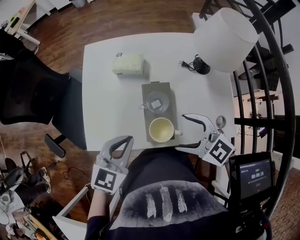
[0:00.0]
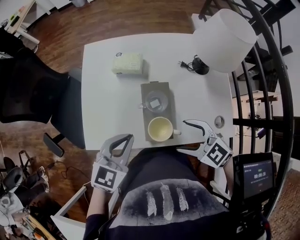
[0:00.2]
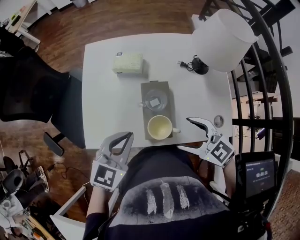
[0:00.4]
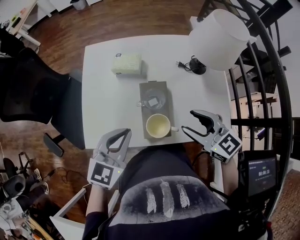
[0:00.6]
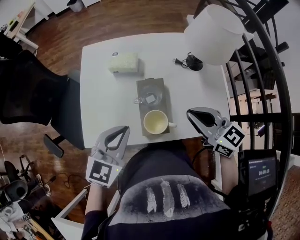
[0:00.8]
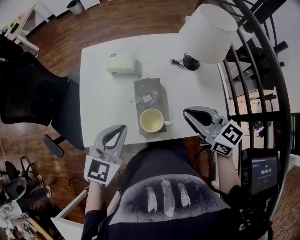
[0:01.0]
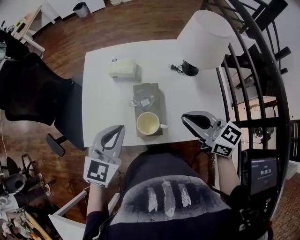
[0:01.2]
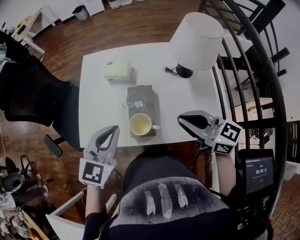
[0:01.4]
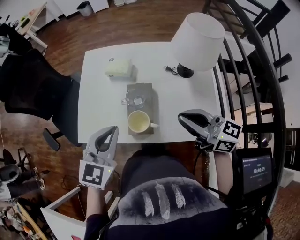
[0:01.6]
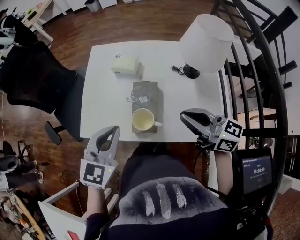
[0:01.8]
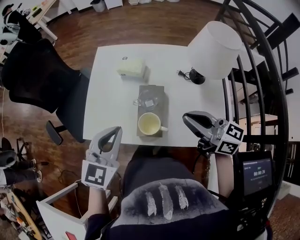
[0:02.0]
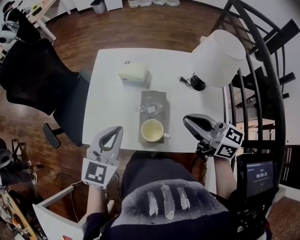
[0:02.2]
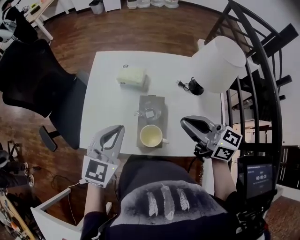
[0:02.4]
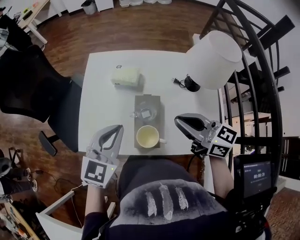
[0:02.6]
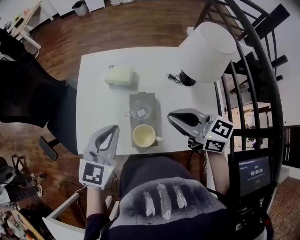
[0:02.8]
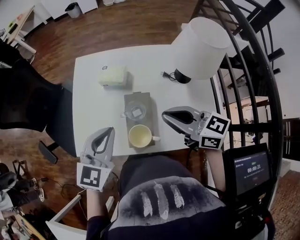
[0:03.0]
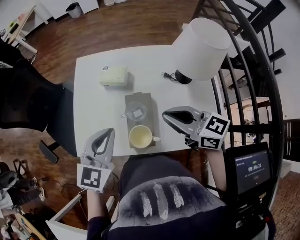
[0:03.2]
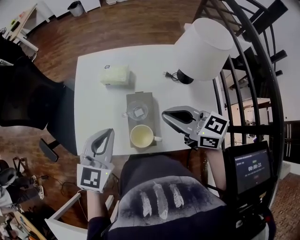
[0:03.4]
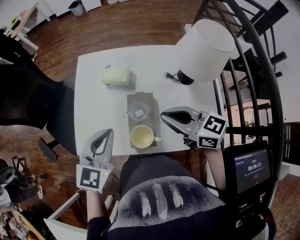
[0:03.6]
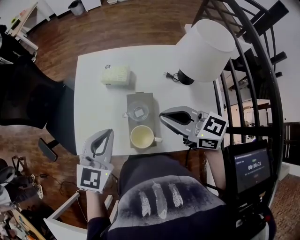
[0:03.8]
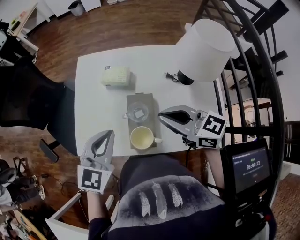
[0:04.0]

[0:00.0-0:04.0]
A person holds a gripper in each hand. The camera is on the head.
0:00.0 to 0:01.4: The left gripper goes about 10 cm upward; the right gripper goes roughly 15 cm upward and to the right, swivels approximately 30 degrees, and closes up.
0:01.4 to 0:02.6: The two grippers go some 5 cm forward.
0:02.6 to 0:04.0: The grippers move only a little.

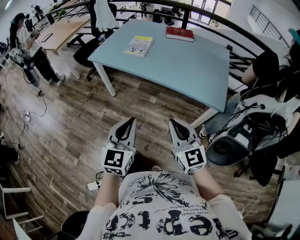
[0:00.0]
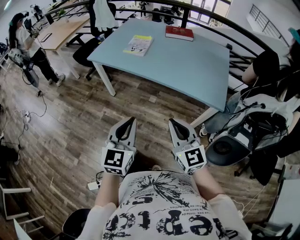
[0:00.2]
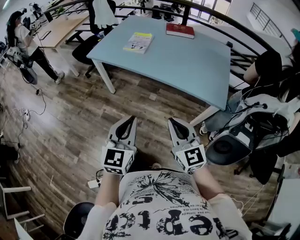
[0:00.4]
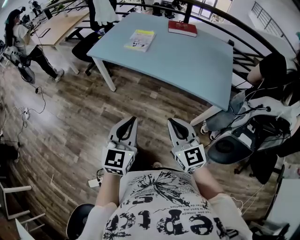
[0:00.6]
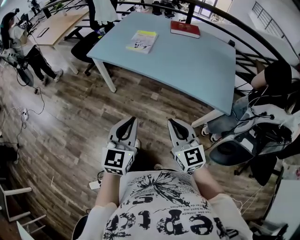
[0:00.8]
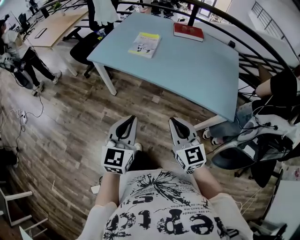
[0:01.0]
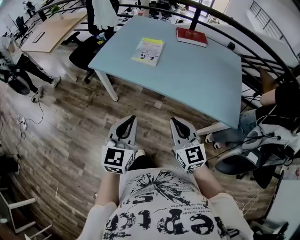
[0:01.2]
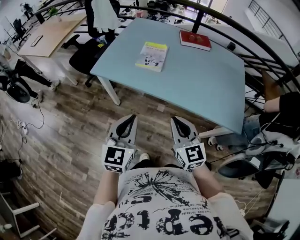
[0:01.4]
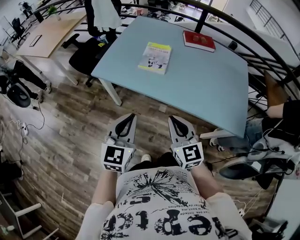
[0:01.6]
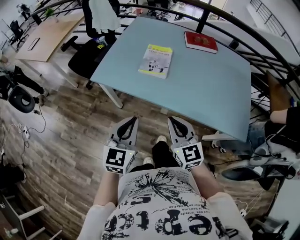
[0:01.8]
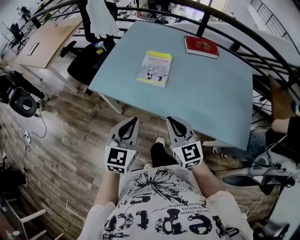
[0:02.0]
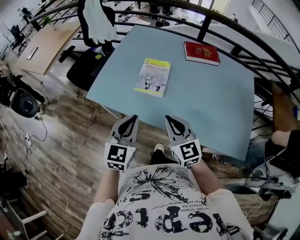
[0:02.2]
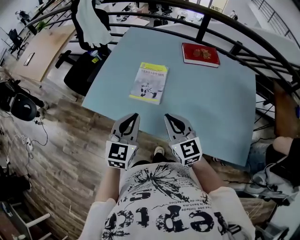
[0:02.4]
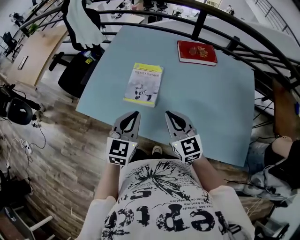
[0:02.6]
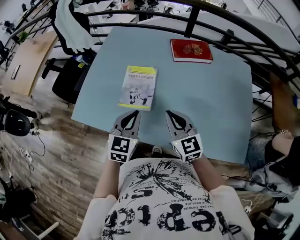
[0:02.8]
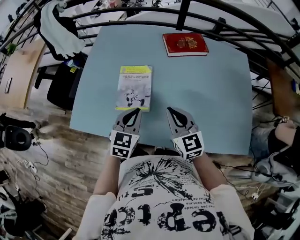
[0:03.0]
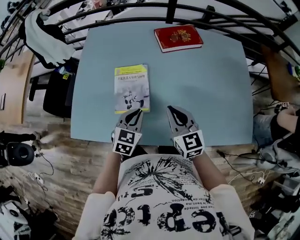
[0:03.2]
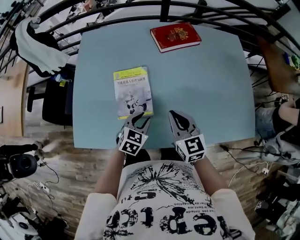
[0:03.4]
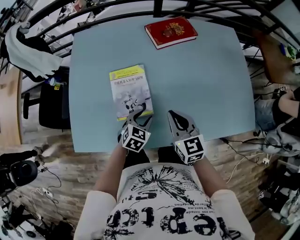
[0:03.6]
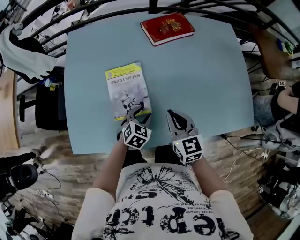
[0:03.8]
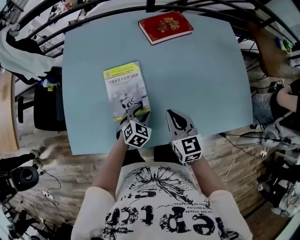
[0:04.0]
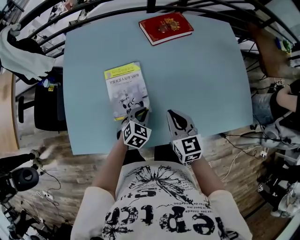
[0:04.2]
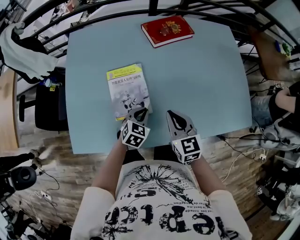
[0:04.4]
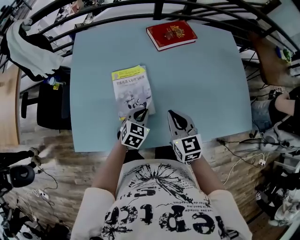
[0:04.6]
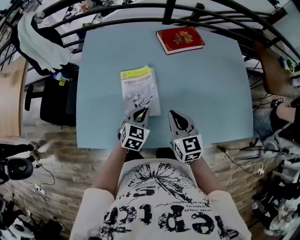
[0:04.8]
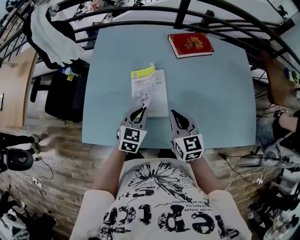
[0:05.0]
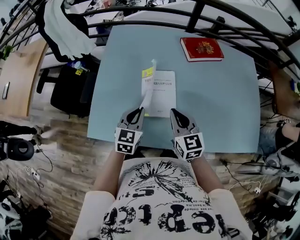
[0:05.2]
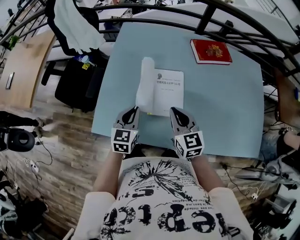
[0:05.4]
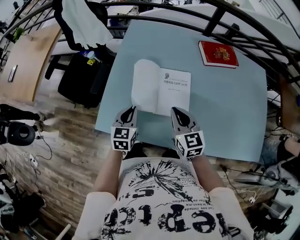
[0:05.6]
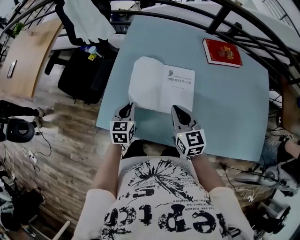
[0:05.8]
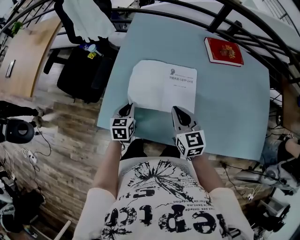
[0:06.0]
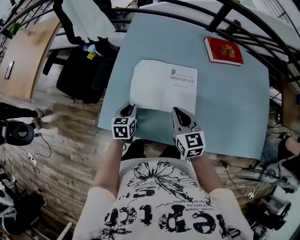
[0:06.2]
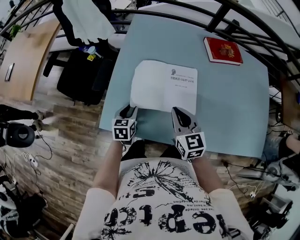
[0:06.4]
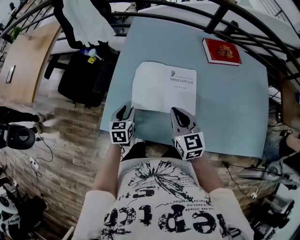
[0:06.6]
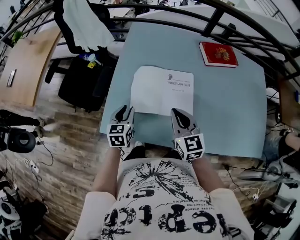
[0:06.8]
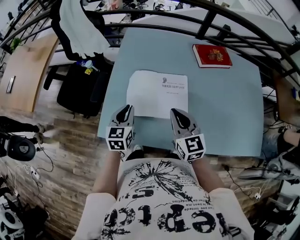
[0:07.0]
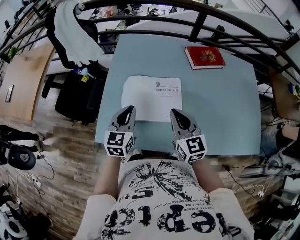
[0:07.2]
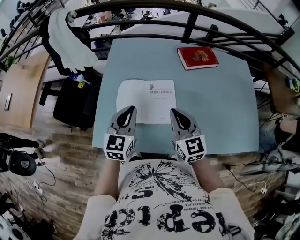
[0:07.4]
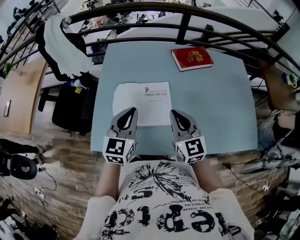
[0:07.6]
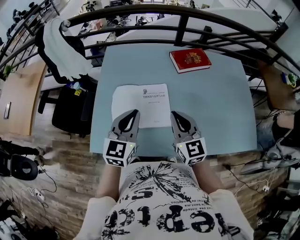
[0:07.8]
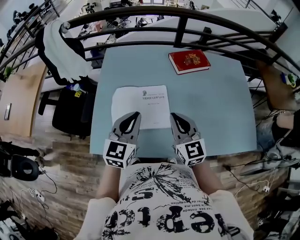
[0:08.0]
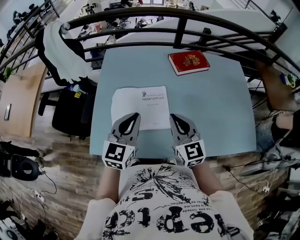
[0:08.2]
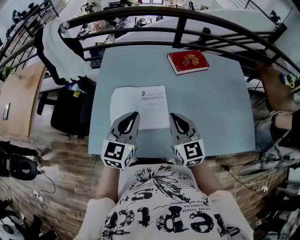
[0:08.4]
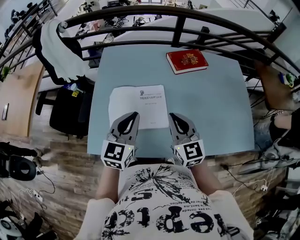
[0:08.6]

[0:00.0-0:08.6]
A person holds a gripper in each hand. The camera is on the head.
0:00.0 to 0:01.4: The grippers both shift forward and to the left by some 30 cm.
0:01.4 to 0:02.8: The two grippers go about 35 cm forward.
0:02.8 to 0:04.4: The left gripper shifts roughly 15 cm downward, turns by some 40 degrees, and opens and closes again. The right gripper travels downward by approximately 5 cm, and swivels some 30 degrees.
0:04.4 to 0:05.8: The right gripper moves about 20 cm. Meanwhile the left gripper reaches some 10 cm upward, then returns, and turns by about 50 degrees.
0:05.8 to 0:07.2: The left gripper moves upward, some 15 cm, and opens, then closes once more. The right gripper goes approximately 5 cm upward.
0:07.2 to 0:08.6: The left gripper moves to the right and upward, roughly 15 cm. Meanwhile the right gripper moves to the right, approximately 5 cm.

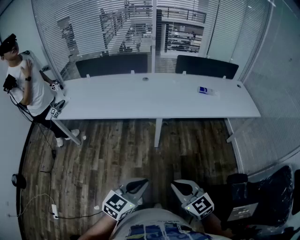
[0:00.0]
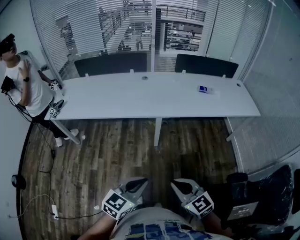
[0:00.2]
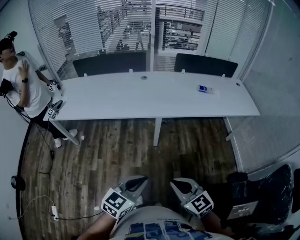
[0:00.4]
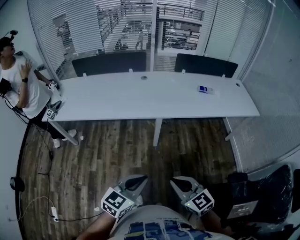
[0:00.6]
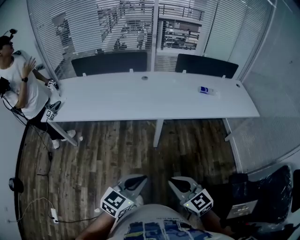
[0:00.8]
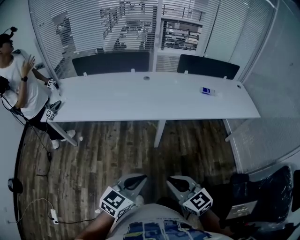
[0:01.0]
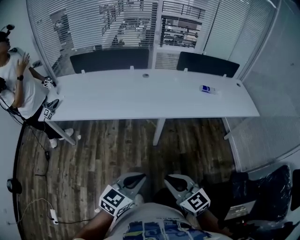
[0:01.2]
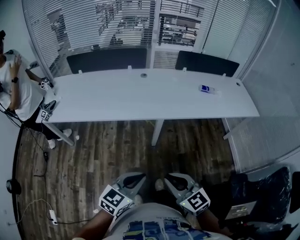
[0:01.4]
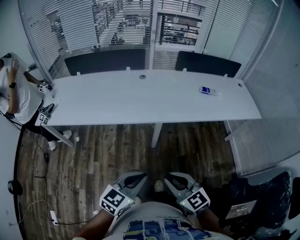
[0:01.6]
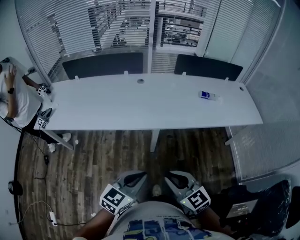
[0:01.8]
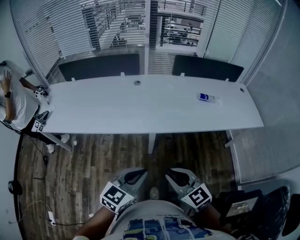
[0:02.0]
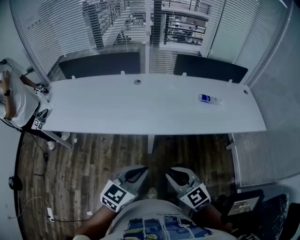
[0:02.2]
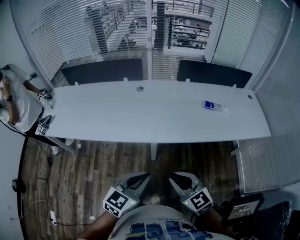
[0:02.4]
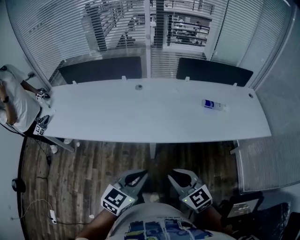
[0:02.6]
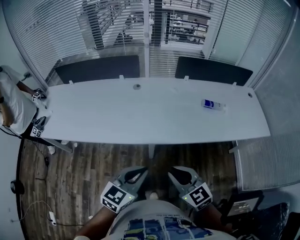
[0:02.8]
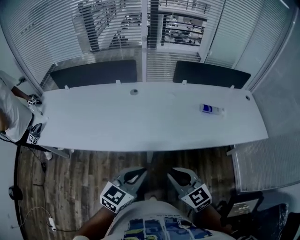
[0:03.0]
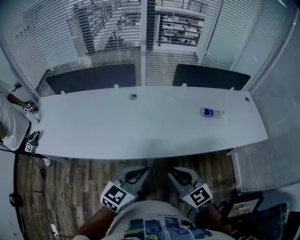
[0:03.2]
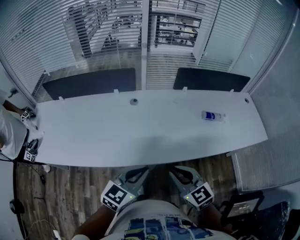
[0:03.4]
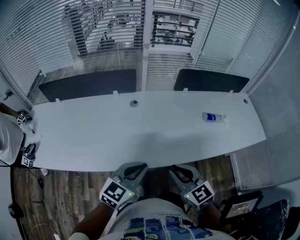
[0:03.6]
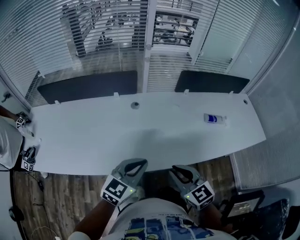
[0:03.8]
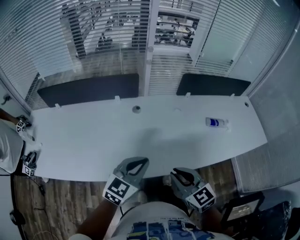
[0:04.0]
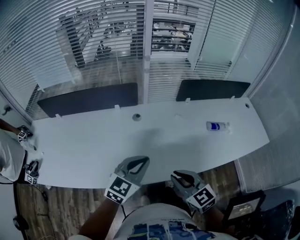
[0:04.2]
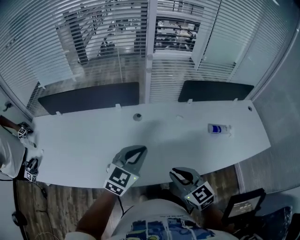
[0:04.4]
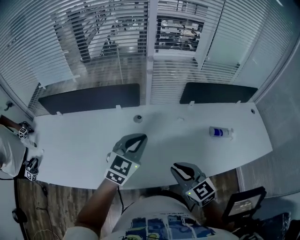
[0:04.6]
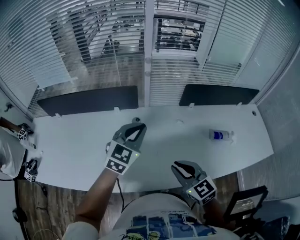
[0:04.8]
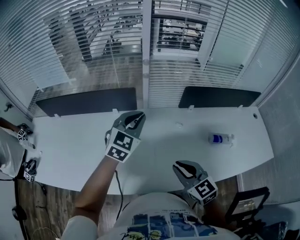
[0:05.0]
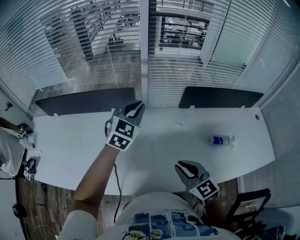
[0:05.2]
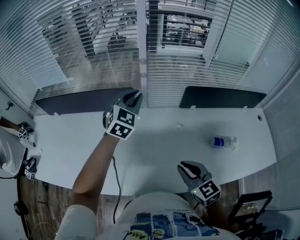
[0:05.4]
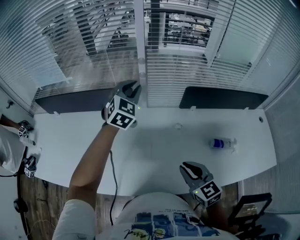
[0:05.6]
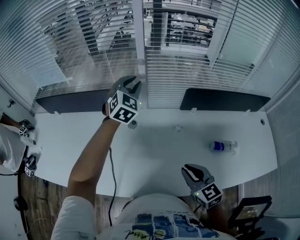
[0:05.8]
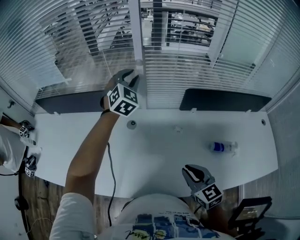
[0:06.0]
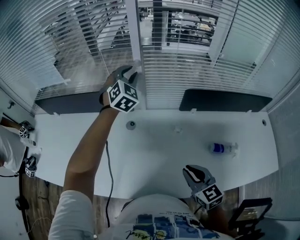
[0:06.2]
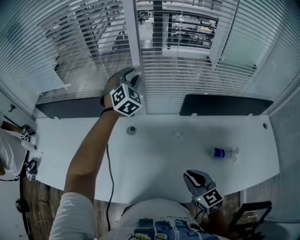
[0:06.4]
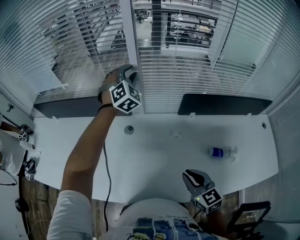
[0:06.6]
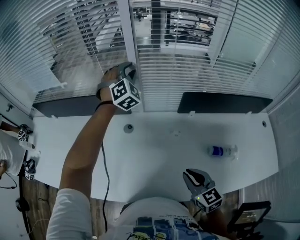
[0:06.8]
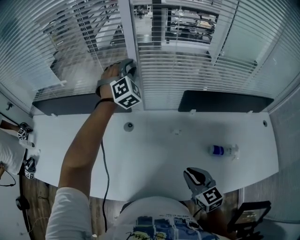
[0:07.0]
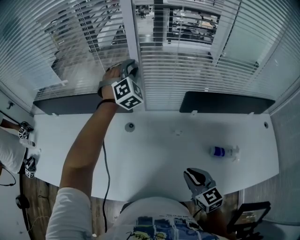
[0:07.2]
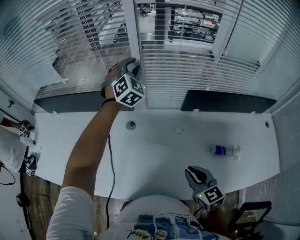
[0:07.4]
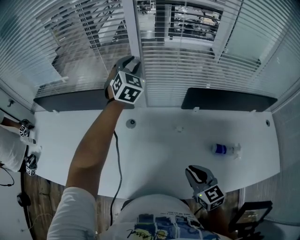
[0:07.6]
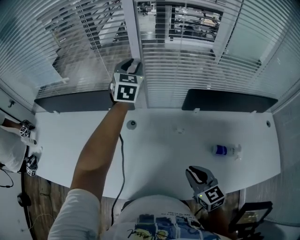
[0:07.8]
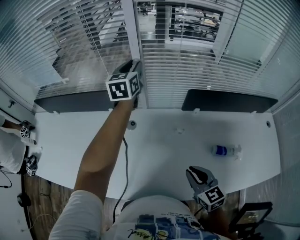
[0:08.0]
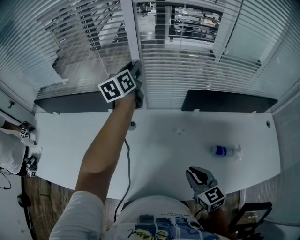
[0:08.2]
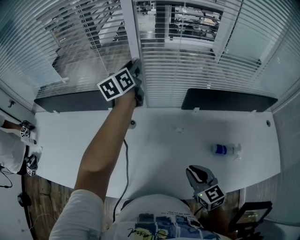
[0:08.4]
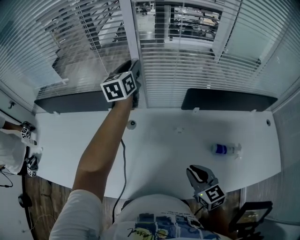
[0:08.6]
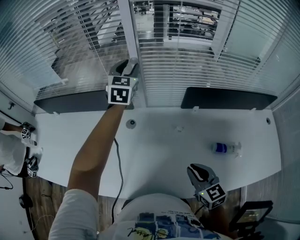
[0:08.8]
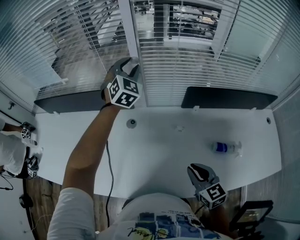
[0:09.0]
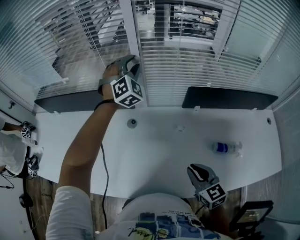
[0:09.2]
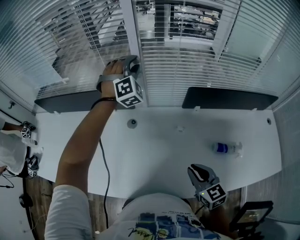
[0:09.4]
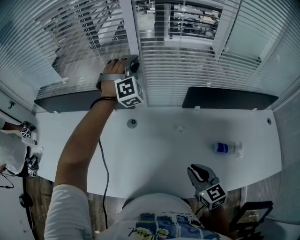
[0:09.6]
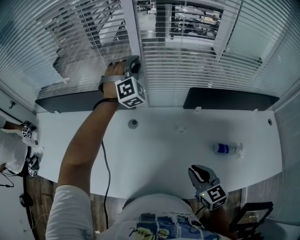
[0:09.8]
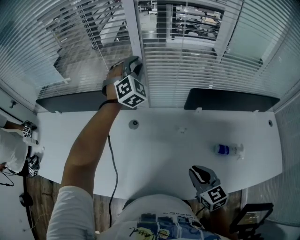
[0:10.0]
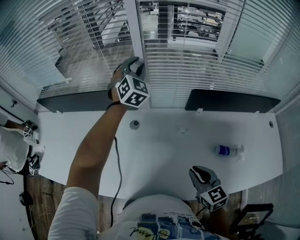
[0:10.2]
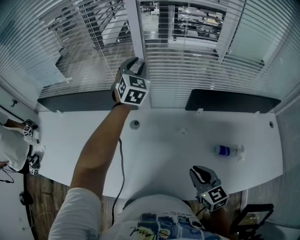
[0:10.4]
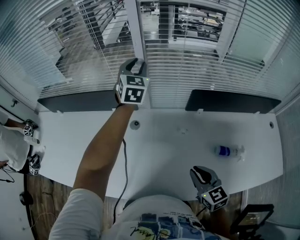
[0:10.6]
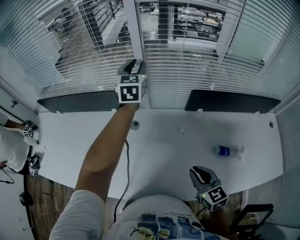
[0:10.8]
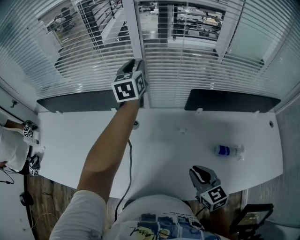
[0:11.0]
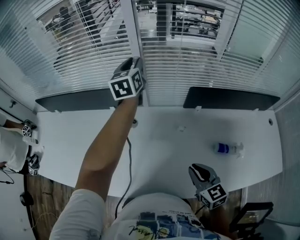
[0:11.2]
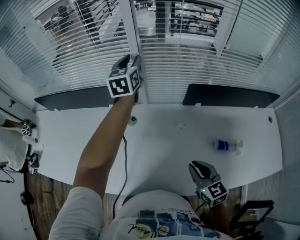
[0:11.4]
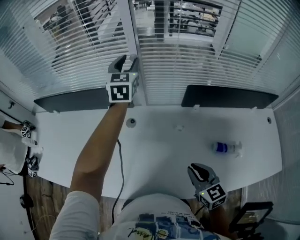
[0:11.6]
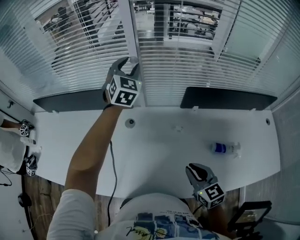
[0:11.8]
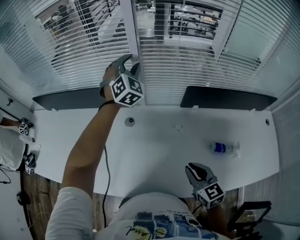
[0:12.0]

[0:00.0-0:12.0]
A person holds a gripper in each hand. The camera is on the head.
0:00.0 to 0:01.6: The right gripper is displaced forward and to the left by some 15 cm. The left gripper goes roughly 10 cm forward.
0:01.6 to 0:03.0: The right gripper moves forward and to the right, some 25 cm; the left gripper shifts approximately 25 cm forward.
0:03.0 to 0:04.4: Both grippers move forward and to the left, approximately 25 cm.
0:04.4 to 0:06.0: The right gripper moves to the right and forward, about 20 cm, while the left gripper heads forward, covering some 35 cm, rotates some 40 degrees, and opens its fingers.
0:06.0 to 0:07.6: The left gripper is displaced forward by approximately 5 cm, while the right gripper ends up approximately 5 cm from where it was.
0:10.4 to 0:12.0: The left gripper rotates about 20 degrees.
